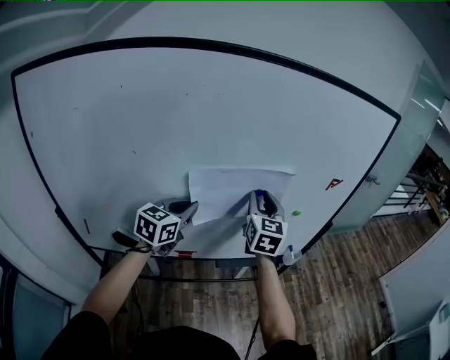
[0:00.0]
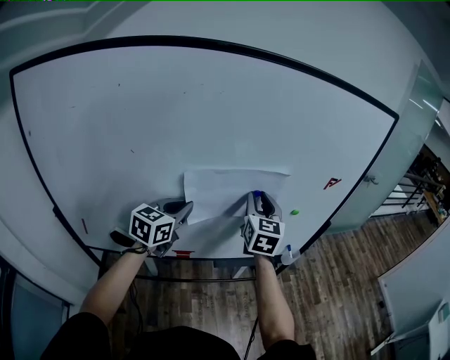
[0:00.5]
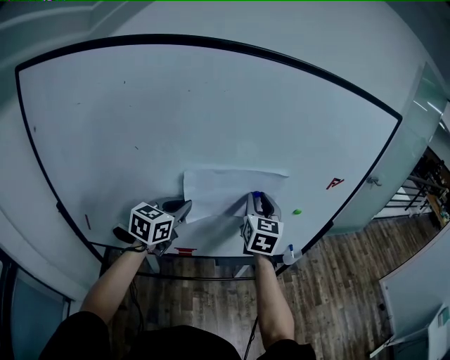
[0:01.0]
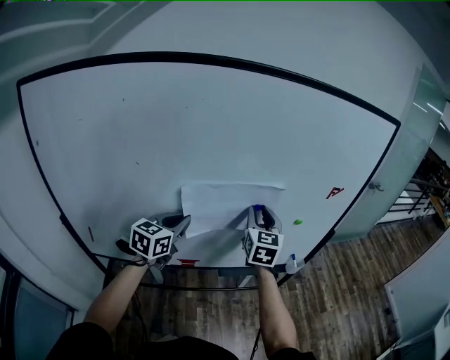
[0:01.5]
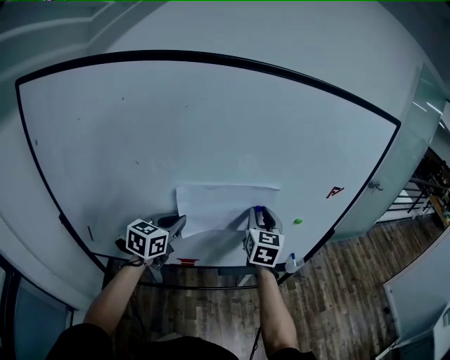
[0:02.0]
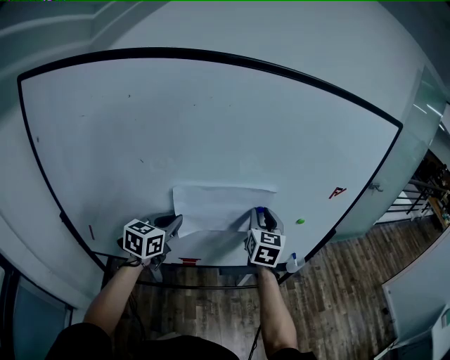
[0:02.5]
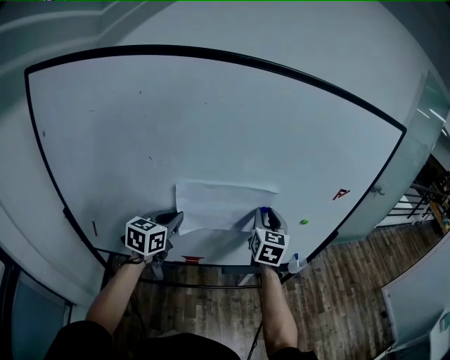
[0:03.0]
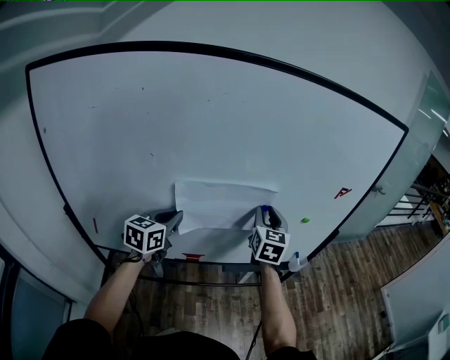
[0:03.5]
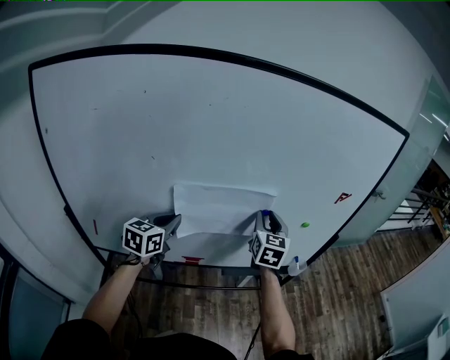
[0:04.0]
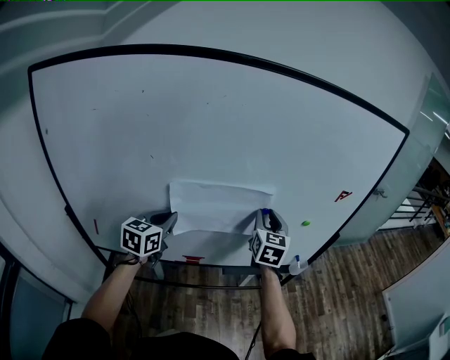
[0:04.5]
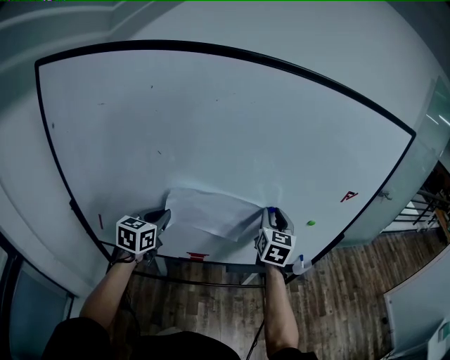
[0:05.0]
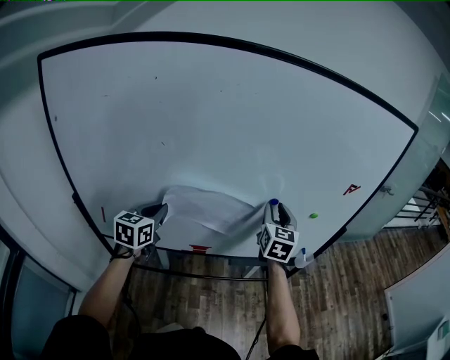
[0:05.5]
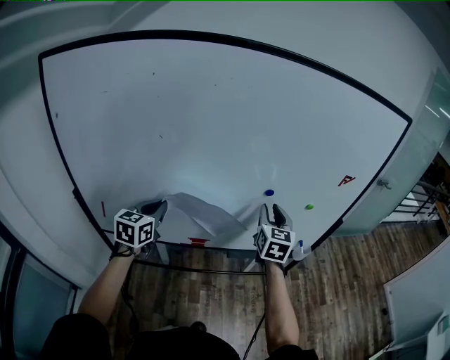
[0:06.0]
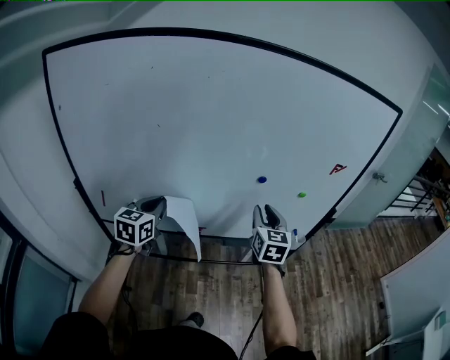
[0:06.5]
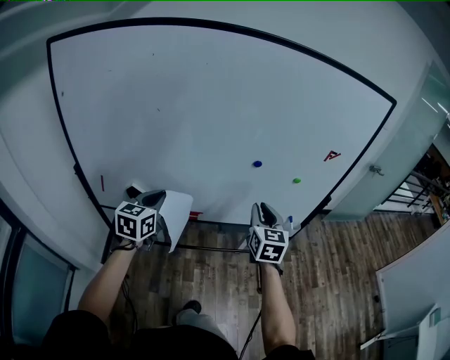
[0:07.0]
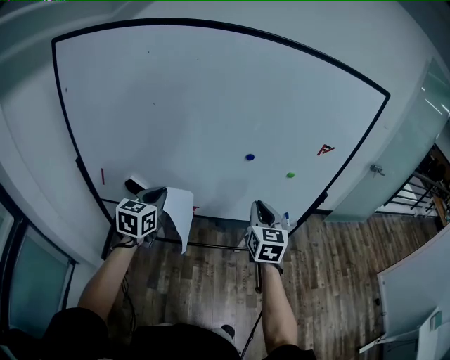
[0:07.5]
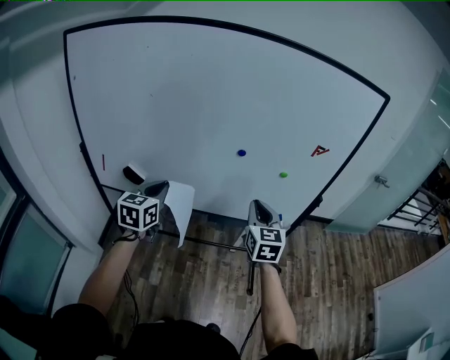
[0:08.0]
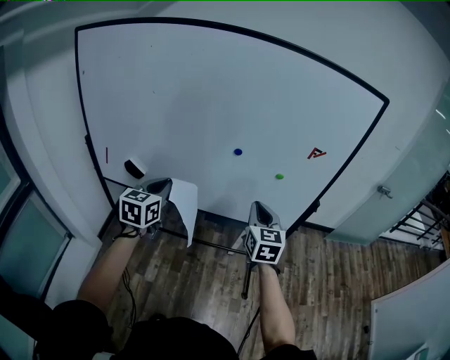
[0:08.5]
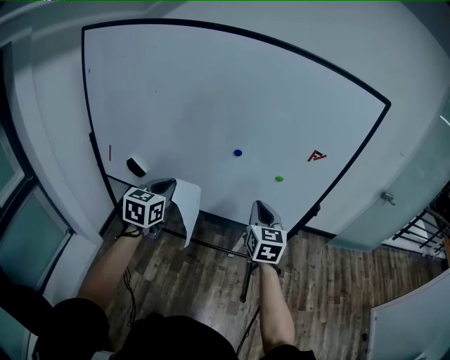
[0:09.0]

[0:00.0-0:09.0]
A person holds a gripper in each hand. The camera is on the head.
0:00.0 to 0:02.0: The grippers make only small movements.
0:02.0 to 0:04.5: The left gripper goes some 5 cm to the left.
0:04.5 to 0:07.0: The two grippers go approximately 15 cm backward.
0:07.0 to 0:09.0: The left gripper travels to the right and backward by some 15 cm, while the right gripper shifts approximately 10 cm to the right.

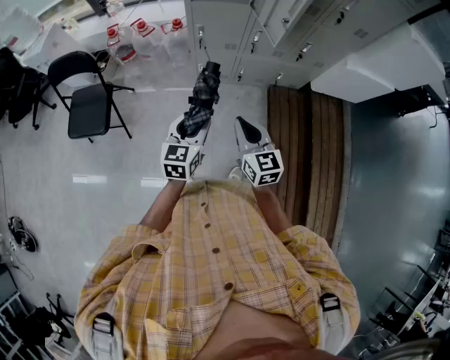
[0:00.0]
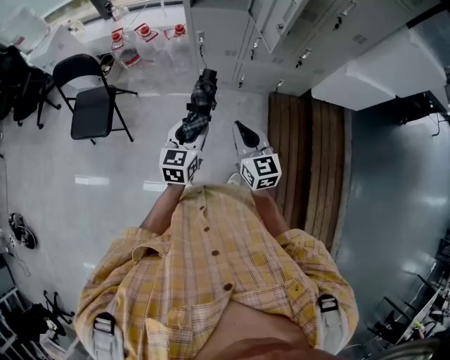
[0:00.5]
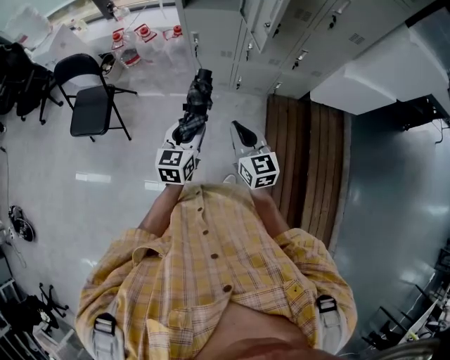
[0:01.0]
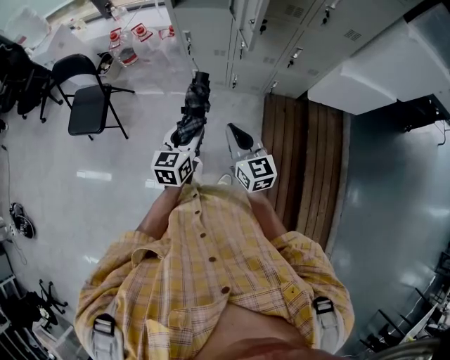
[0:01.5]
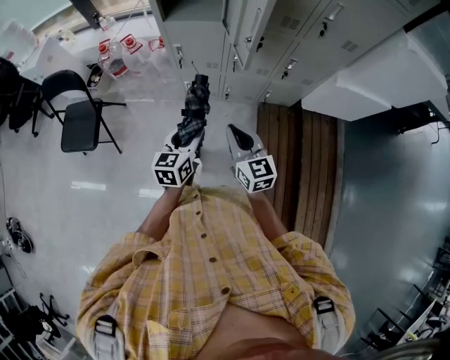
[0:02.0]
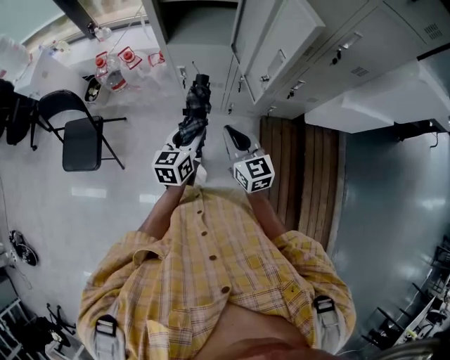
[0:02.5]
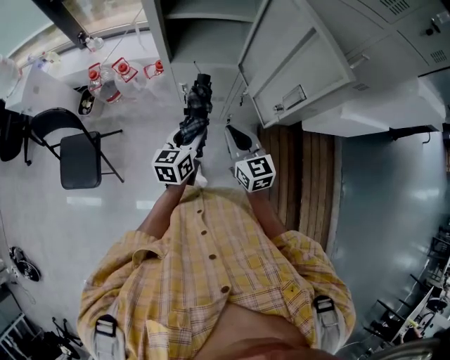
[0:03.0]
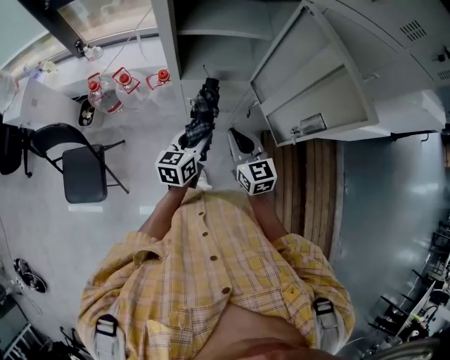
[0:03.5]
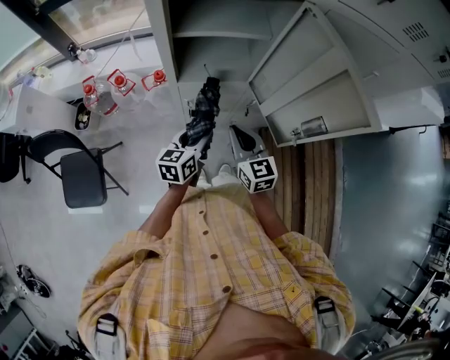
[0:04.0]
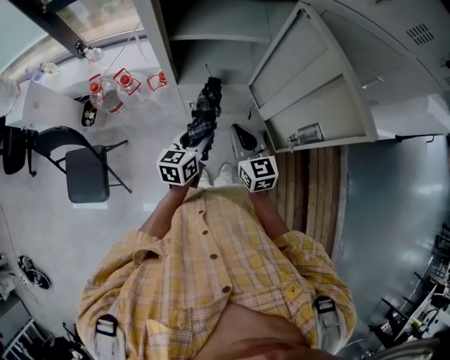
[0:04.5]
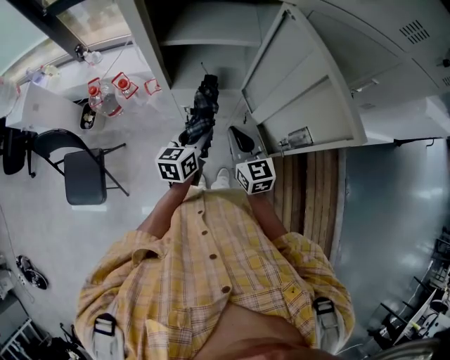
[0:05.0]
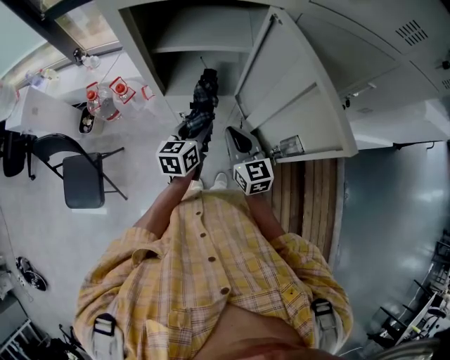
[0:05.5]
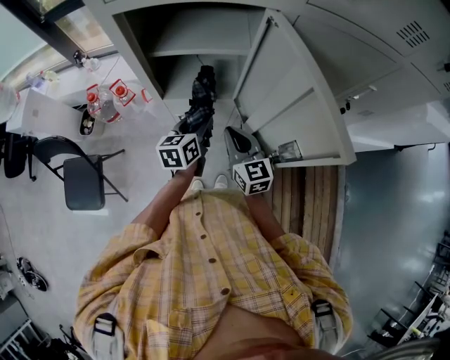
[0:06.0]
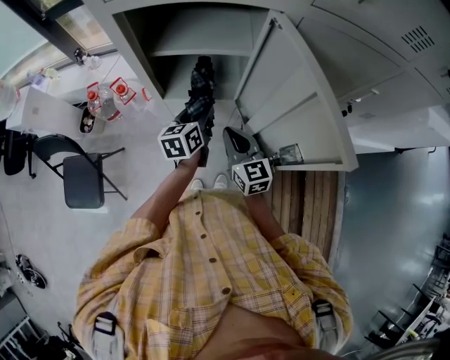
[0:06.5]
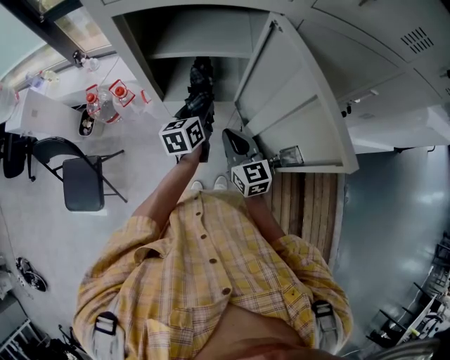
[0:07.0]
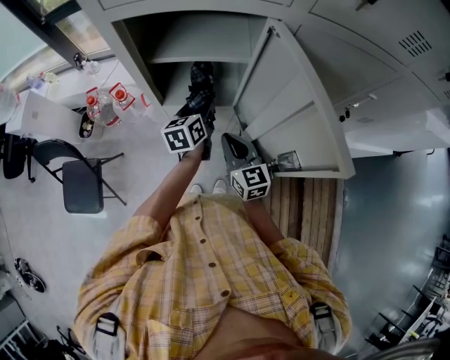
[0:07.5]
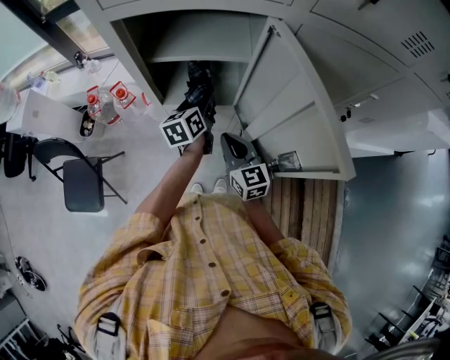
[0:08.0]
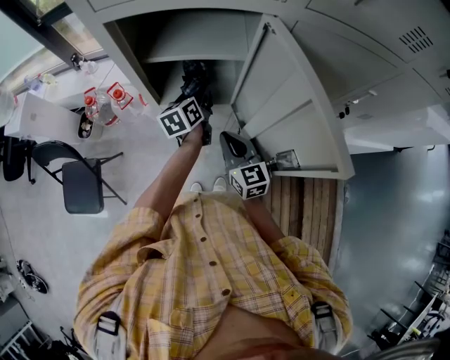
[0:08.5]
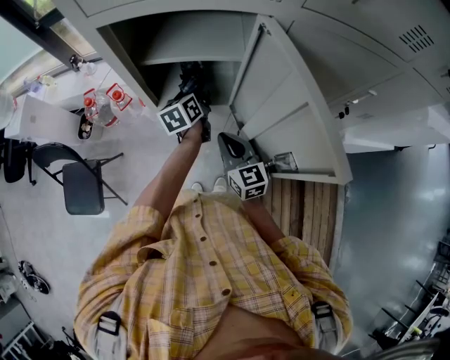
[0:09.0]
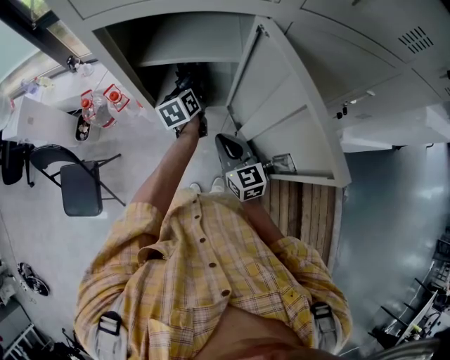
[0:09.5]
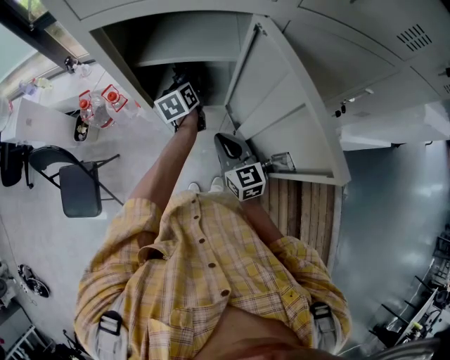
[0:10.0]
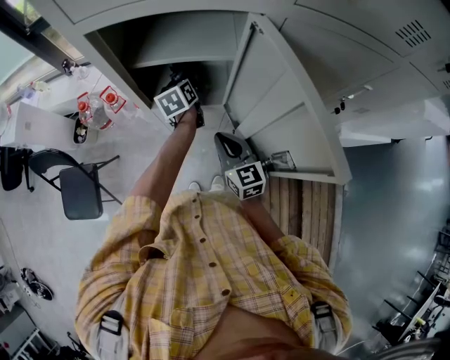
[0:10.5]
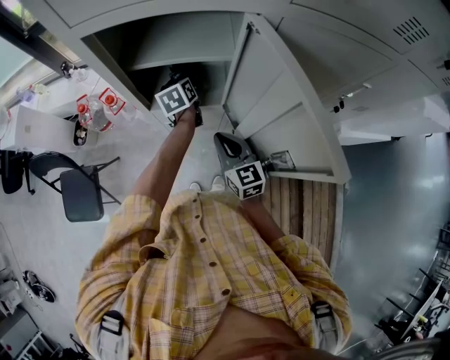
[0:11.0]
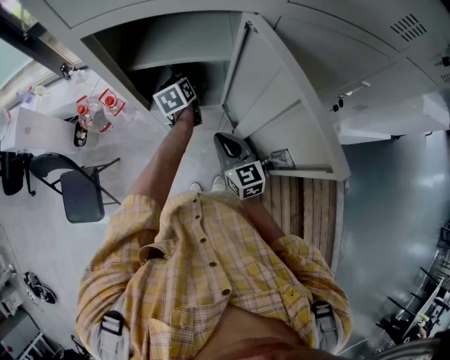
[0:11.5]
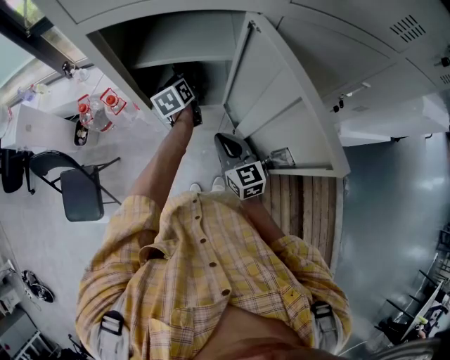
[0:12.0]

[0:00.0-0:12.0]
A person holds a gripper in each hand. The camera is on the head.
0:00.0 to 0:02.0: Both grippers move to the right and forward, approximately 15 cm.
0:02.0 to 0:04.0: The left gripper goes about 30 cm forward, while the right gripper heads forward and to the left, covering about 35 cm.
0:04.0 to 0:06.0: The grippers both shift forward and to the right by about 10 cm.
0:06.0 to 0:08.0: The left gripper shifts approximately 10 cm forward.
0:08.0 to 0:10.0: The left gripper goes some 10 cm forward.
0:10.0 to 0:12.0: The grippers stay close to where they were, moving slightly.

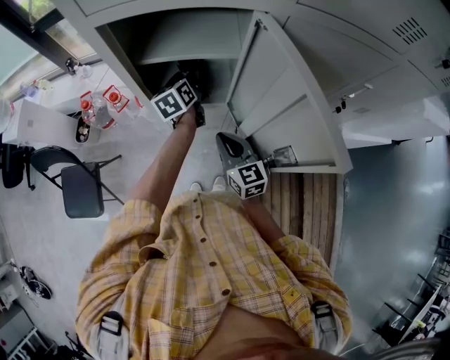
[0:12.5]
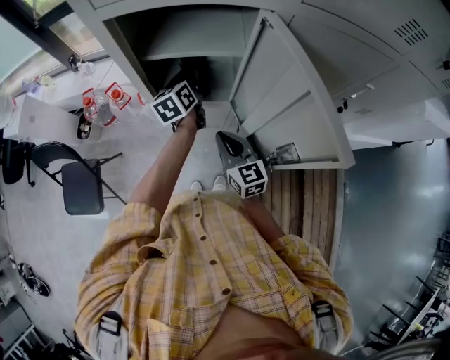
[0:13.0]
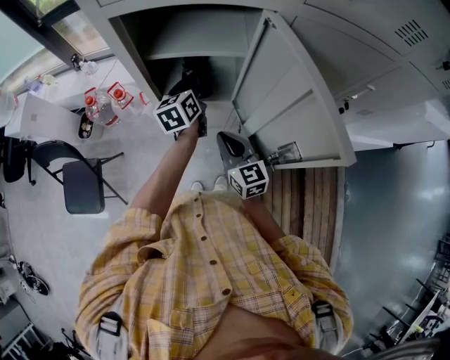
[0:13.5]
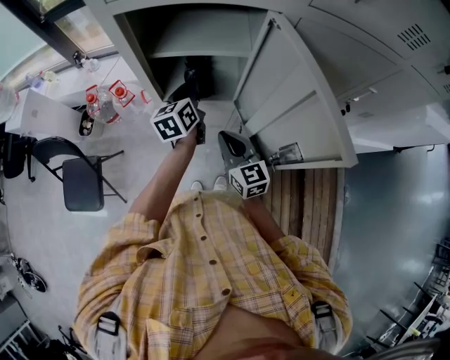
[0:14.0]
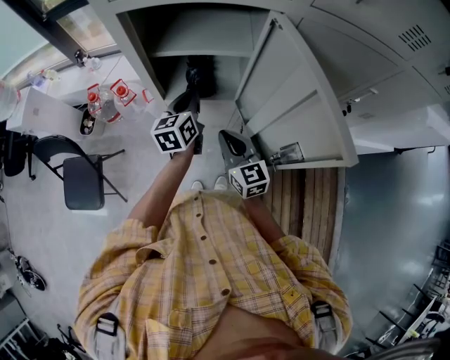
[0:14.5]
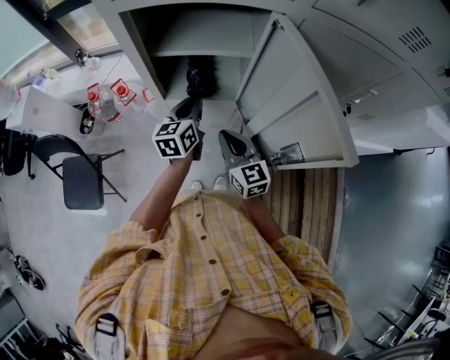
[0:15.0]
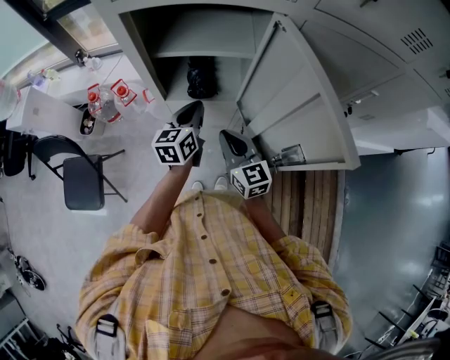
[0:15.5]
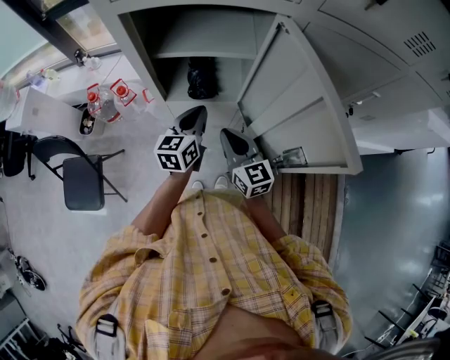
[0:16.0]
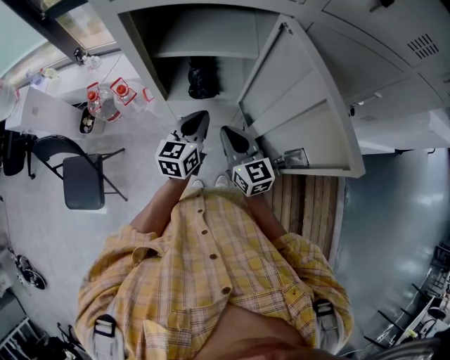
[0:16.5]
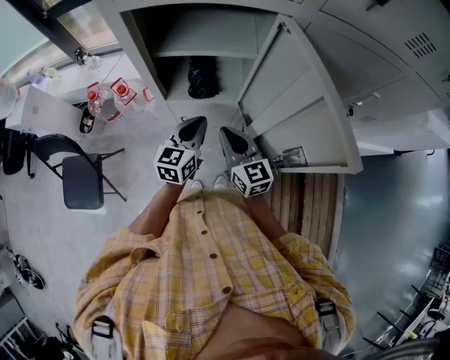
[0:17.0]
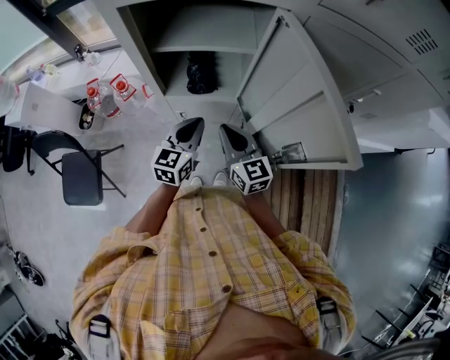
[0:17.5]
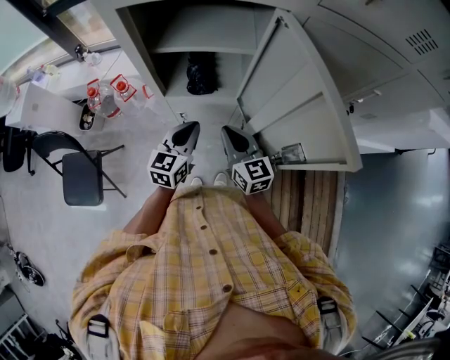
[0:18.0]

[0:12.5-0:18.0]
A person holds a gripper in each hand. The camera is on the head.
0:12.5 to 0:14.5: The left gripper goes some 10 cm backward, and closes its fingers.
0:14.5 to 0:16.0: The left gripper changes place by roughly 5 cm.
0:16.0 to 0:18.0: The left gripper shifts some 5 cm backward.

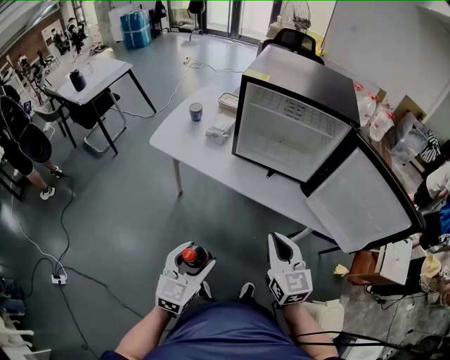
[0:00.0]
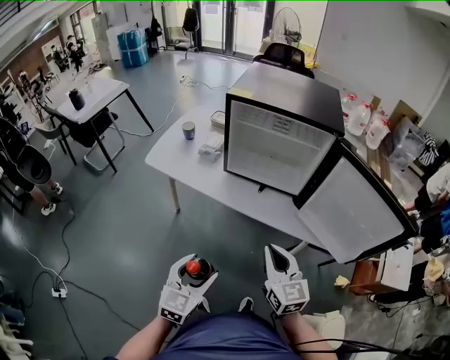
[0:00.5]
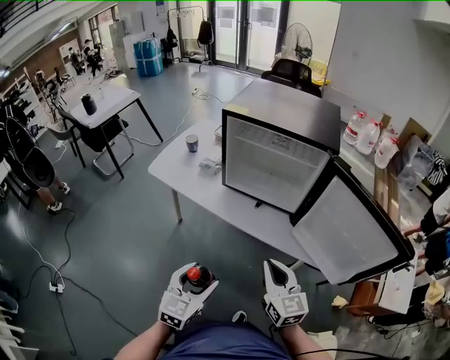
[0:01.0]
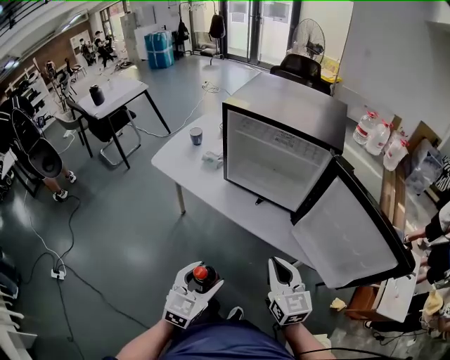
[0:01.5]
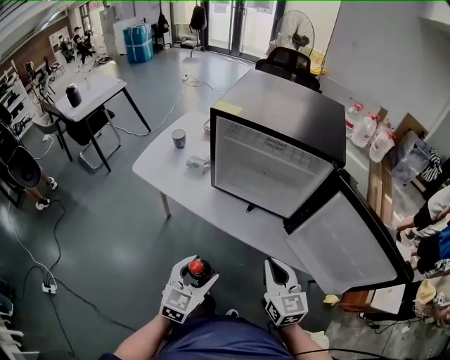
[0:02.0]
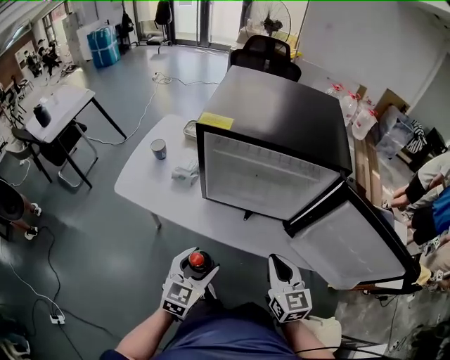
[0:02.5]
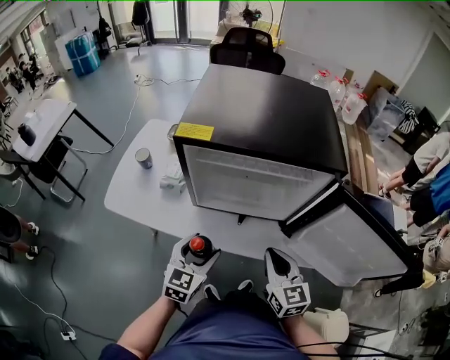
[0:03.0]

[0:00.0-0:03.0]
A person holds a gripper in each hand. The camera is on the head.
0:00.0 to 0:01.5: The two grippers go some 15 cm to the right.
0:01.5 to 0:03.0: The right gripper moves forward, roughly 15 cm. The left gripper travels forward by some 30 cm.
